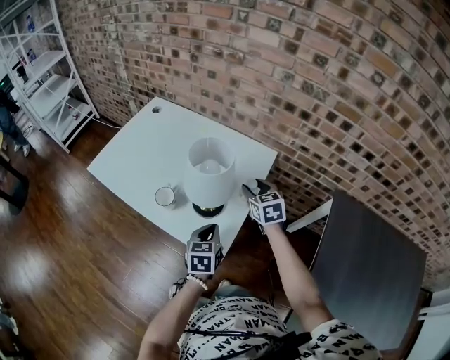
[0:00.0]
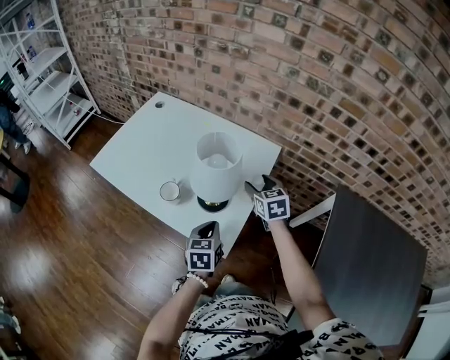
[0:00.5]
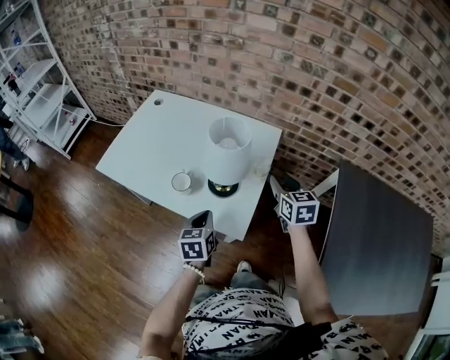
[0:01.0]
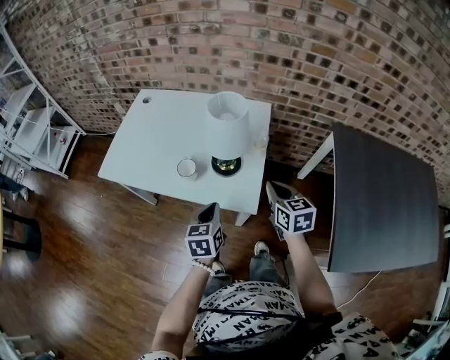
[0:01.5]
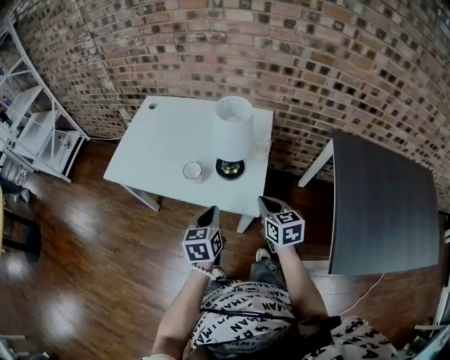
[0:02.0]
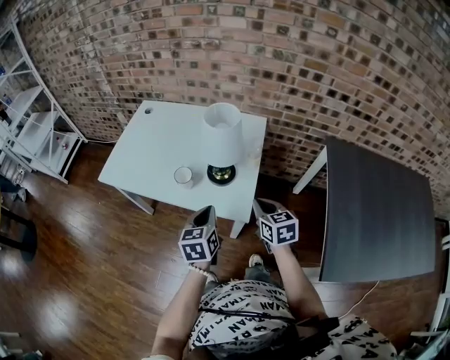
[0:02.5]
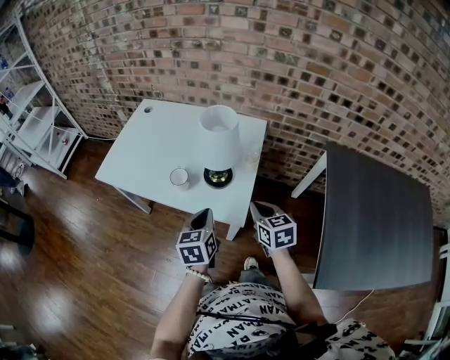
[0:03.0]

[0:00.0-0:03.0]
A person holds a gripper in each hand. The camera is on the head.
0:00.0 to 0:01.5: The left gripper heads to the left and backward, covering approximately 15 cm. The right gripper shifts roughly 20 cm backward, swivels approximately 20 degrees, and closes.

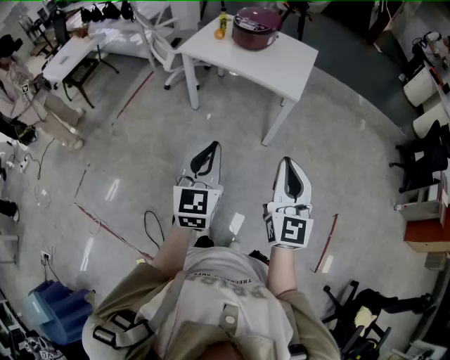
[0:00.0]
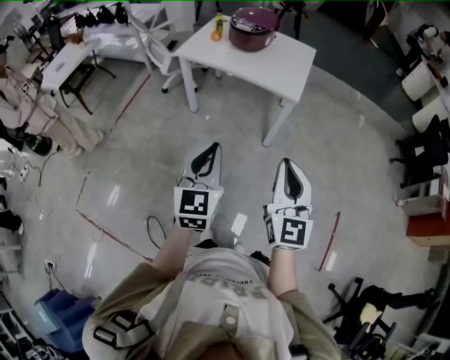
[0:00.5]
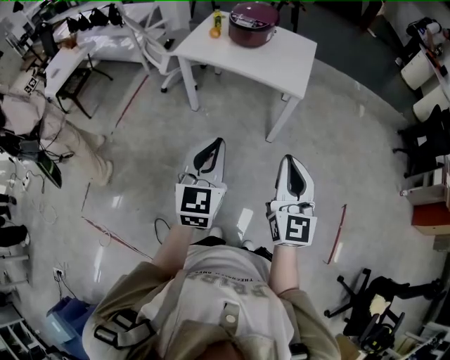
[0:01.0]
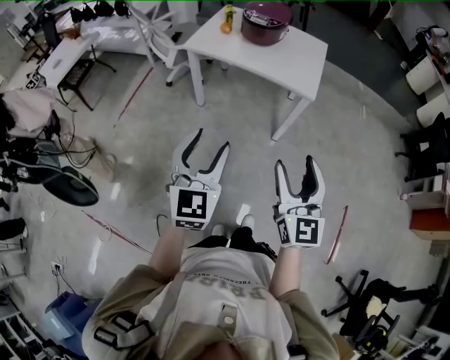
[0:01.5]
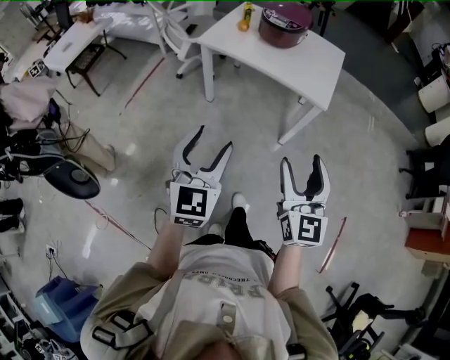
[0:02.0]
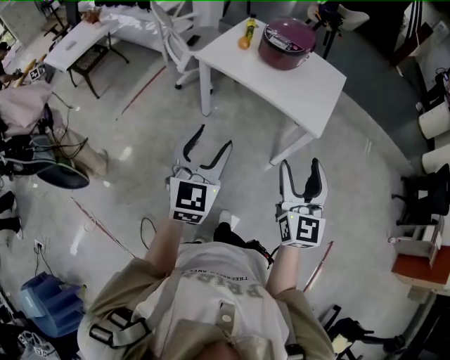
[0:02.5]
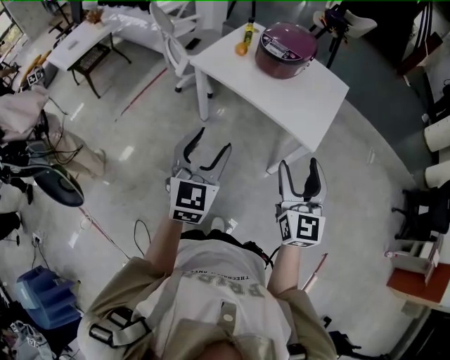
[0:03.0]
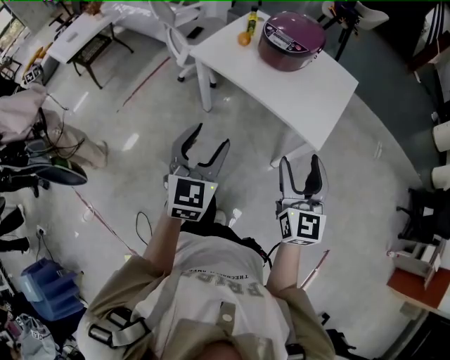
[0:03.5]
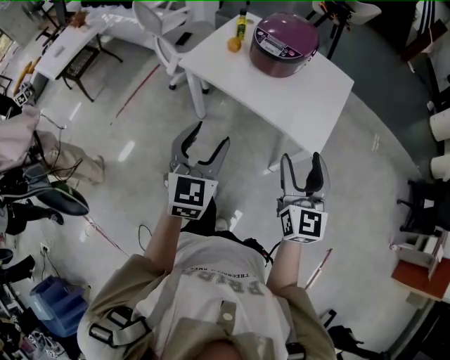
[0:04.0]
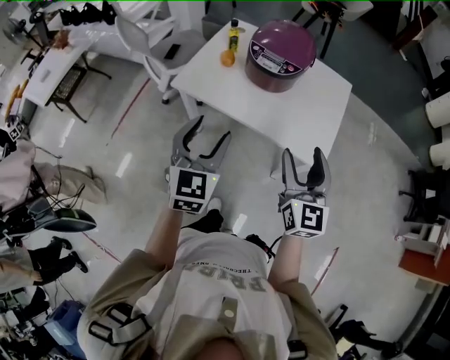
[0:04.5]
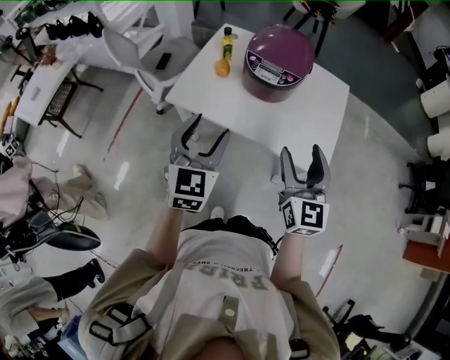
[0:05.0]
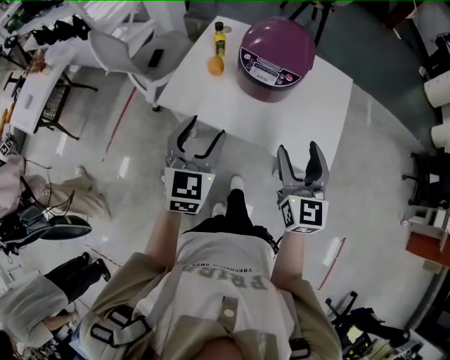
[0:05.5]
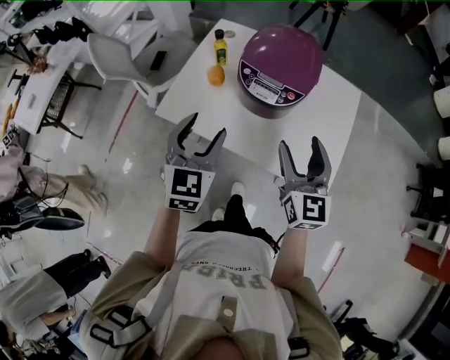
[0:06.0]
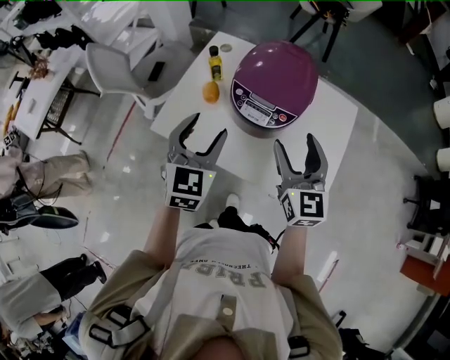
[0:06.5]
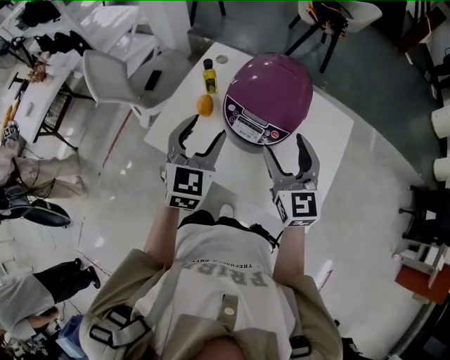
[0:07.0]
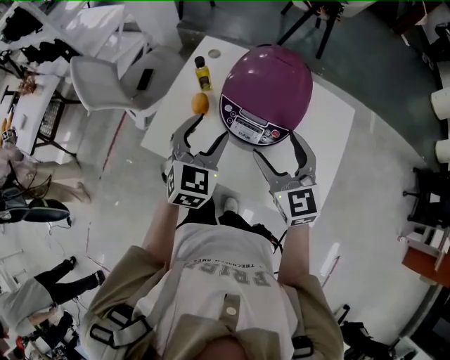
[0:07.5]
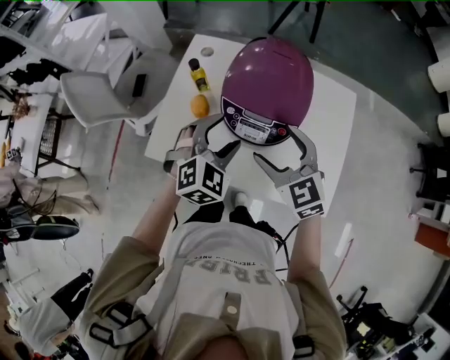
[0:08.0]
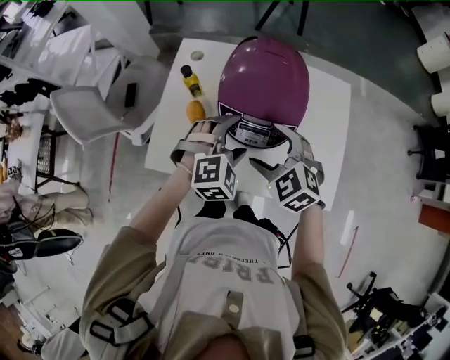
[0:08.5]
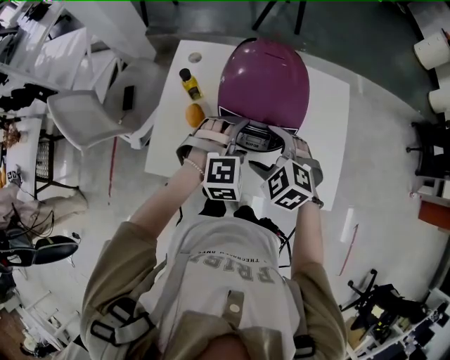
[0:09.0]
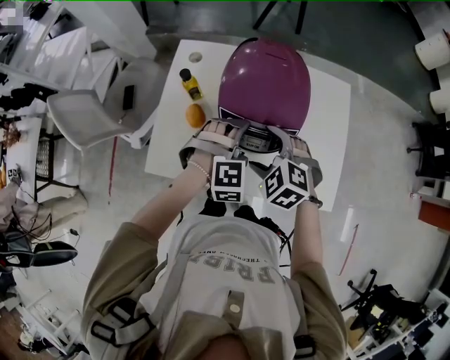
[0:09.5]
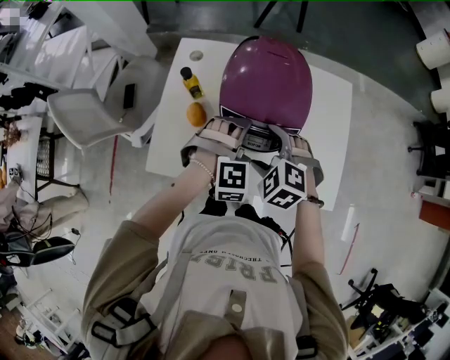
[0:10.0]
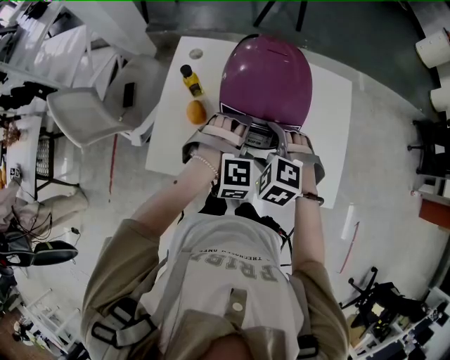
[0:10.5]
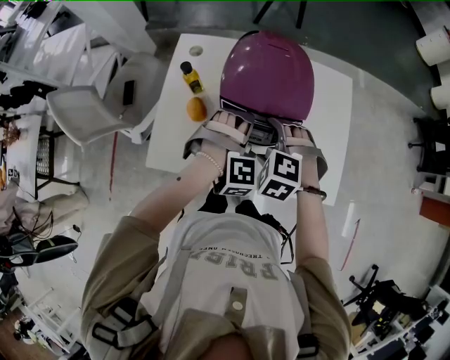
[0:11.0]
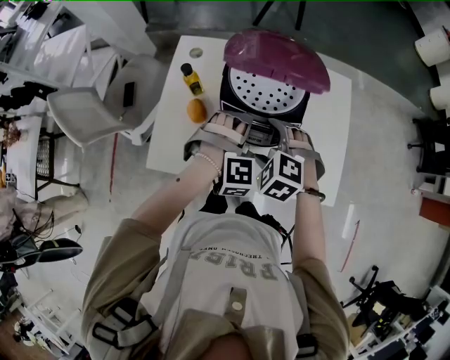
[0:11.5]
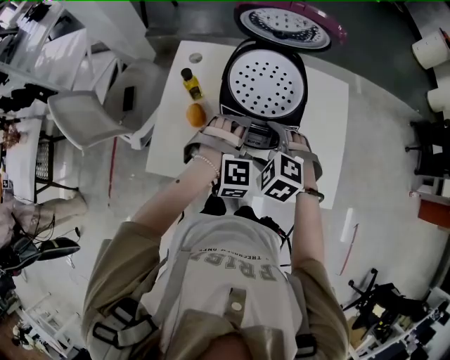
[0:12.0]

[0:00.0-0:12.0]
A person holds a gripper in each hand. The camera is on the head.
0:00.0 to 0:02.0: The left gripper shifts some 15 cm to the left and forward, and opens its fingers. Meanwhile the right gripper travels forward and to the left by some 15 cm, and opens up.
0:02.0 to 0:04.0: The grippers both shift forward by some 30 cm.
0:04.0 to 0:06.0: Both grippers move forward, some 30 cm.
0:06.0 to 0:08.0: The left gripper heads forward and to the right, covering roughly 15 cm, and swivels about 40 degrees. Meanwhile the right gripper shifts some 15 cm forward and to the left, and changes its angle by approximately 30 degrees.
0:08.0 to 0:10.0: Both grippers move downward, roughly 10 cm. The left gripper rotates around the line of its fingers by some 40 degrees, clockwise from behind, while the right gripper tilts its fingers roughly 30 degrees downward.
0:10.0 to 0:12.0: There are only small adjustments of the grippers.

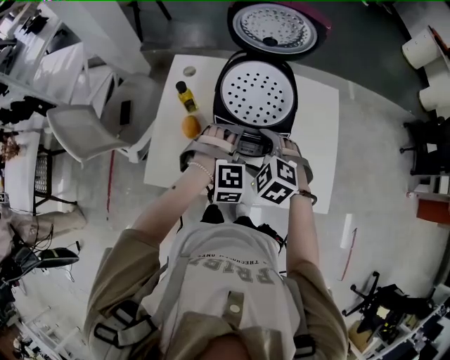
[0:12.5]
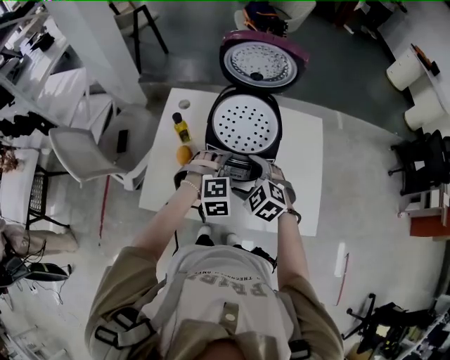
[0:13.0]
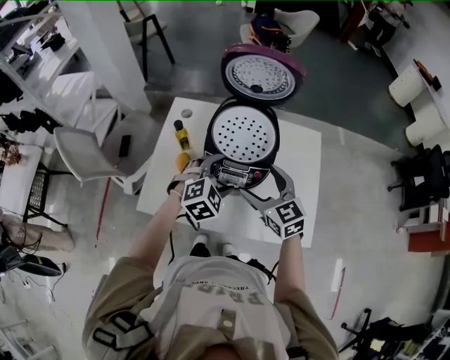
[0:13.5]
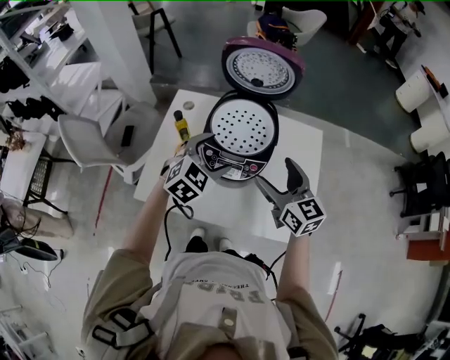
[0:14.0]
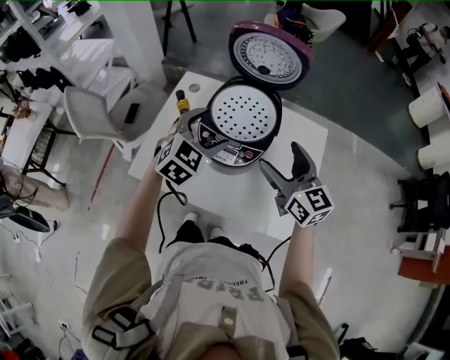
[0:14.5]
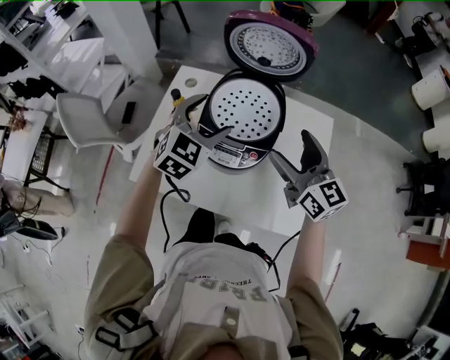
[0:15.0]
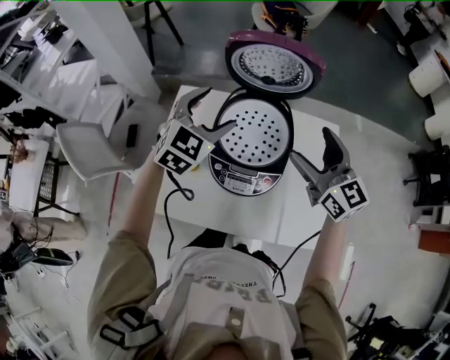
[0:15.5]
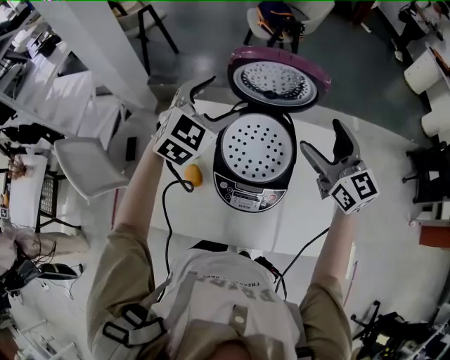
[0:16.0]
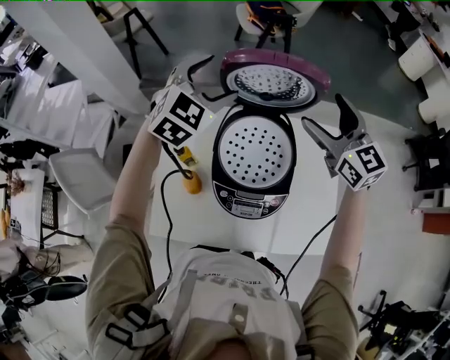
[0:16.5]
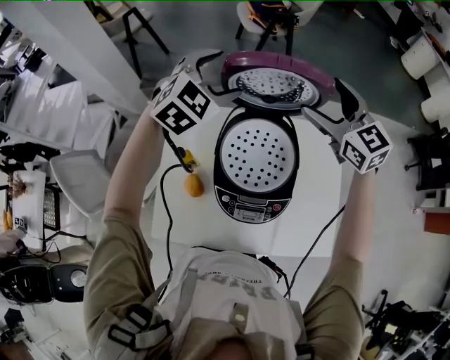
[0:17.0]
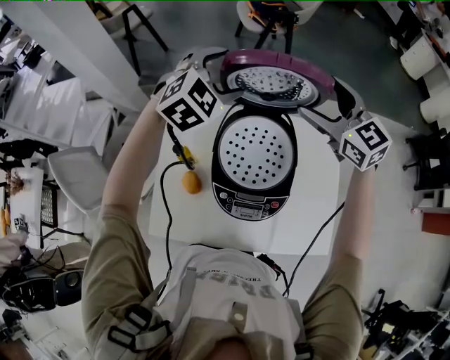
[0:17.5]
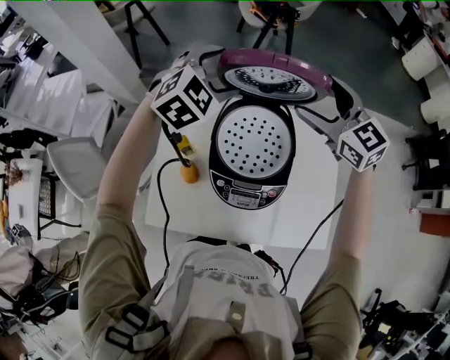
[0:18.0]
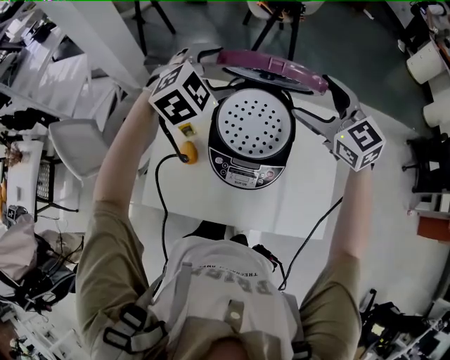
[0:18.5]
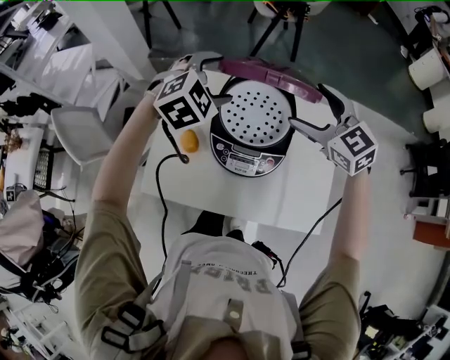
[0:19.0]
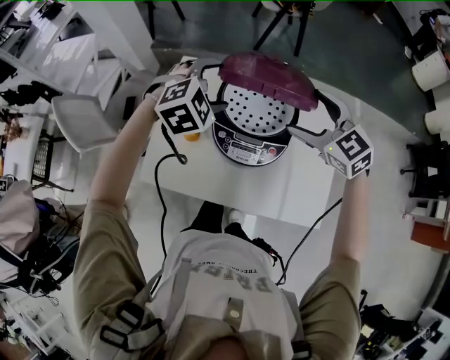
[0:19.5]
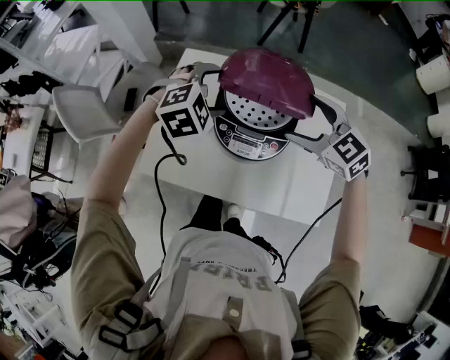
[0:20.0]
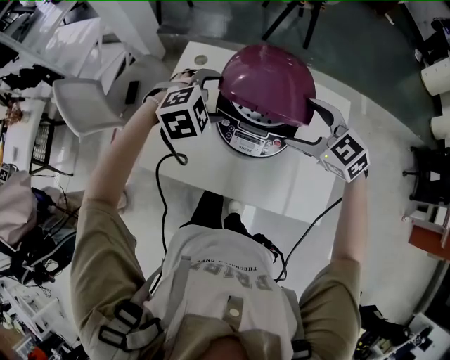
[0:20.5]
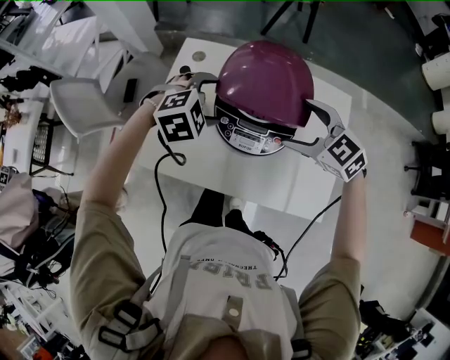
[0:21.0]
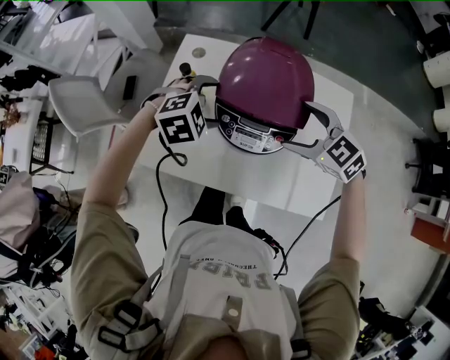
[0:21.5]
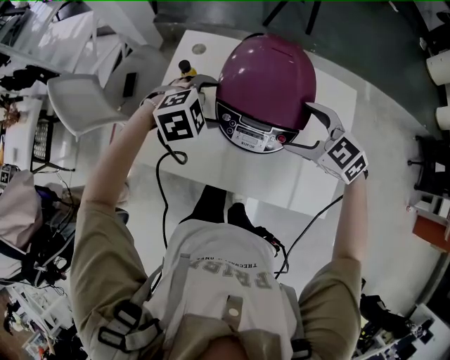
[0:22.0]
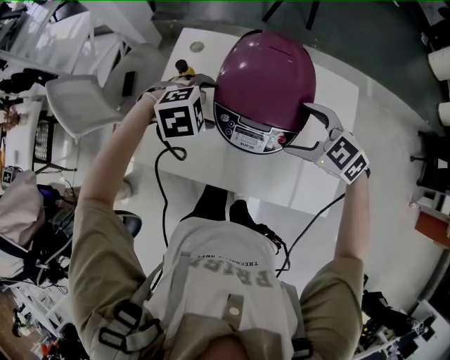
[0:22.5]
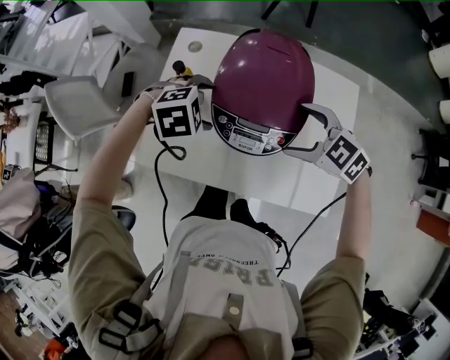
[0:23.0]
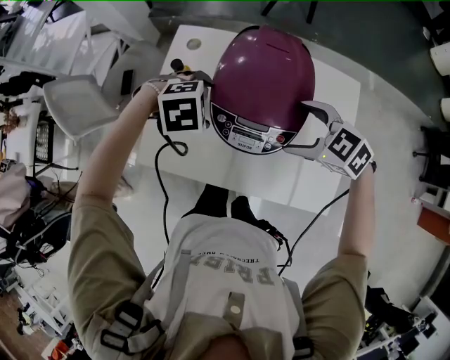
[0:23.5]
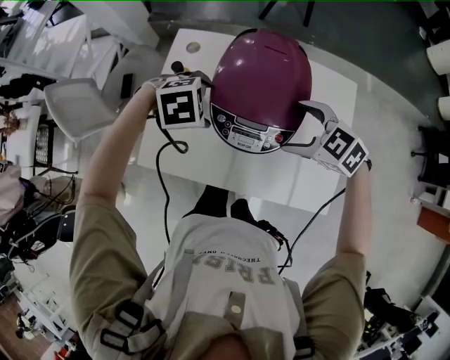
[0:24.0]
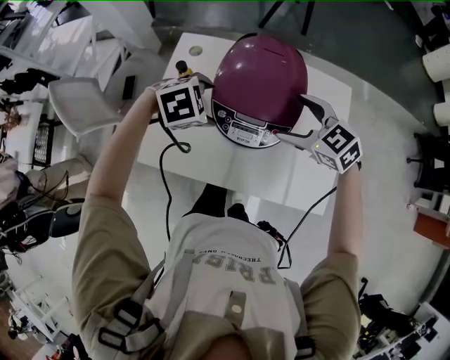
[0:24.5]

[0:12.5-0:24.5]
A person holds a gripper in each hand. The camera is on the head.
0:12.5 to 0:14.5: The right gripper heads upward and to the right, covering approximately 20 cm, and angles its fingers upward, by some 50 degrees; the left gripper shifts approximately 15 cm upward, and rotates around the line of its fingers by about 50 degrees, counterclockwise from behind.
0:14.5 to 0:16.5: The grippers both shift forward by roughly 25 cm.
0:16.5 to 0:18.5: The right gripper ends up about 5 cm from where it was. The left gripper is displaced backward by roughly 5 cm.
0:18.5 to 0:20.5: Both grippers travel together backward and downward, approximately 15 cm. The right gripper swivels approximately 20 degrees.
0:20.5 to 0:22.5: Both grippers travel together downward, some 5 cm.
0:22.5 to 0:24.5: The grippers stay close to where they were, moving slightly.
